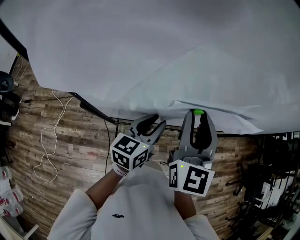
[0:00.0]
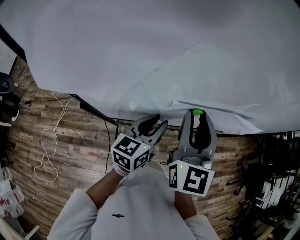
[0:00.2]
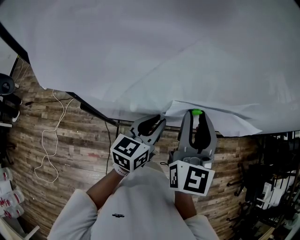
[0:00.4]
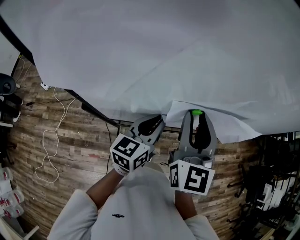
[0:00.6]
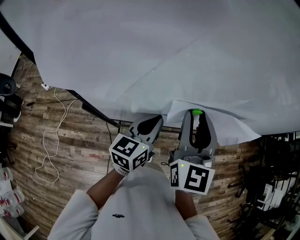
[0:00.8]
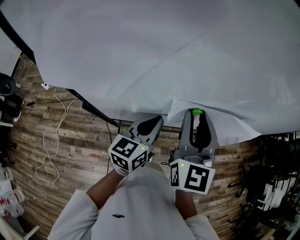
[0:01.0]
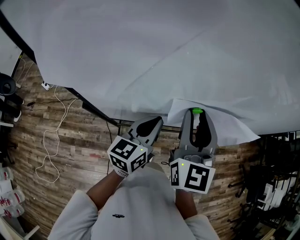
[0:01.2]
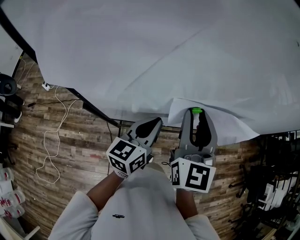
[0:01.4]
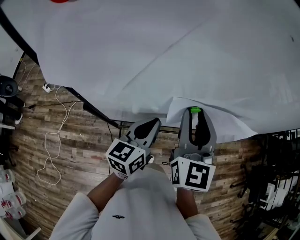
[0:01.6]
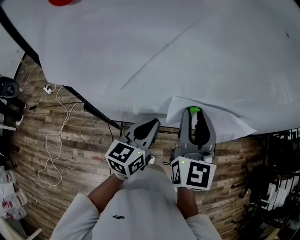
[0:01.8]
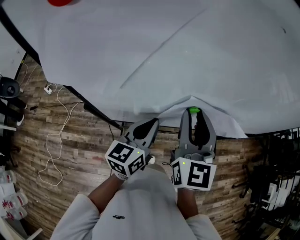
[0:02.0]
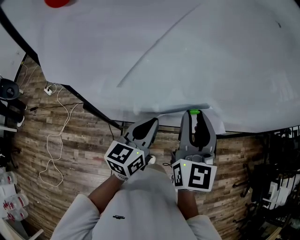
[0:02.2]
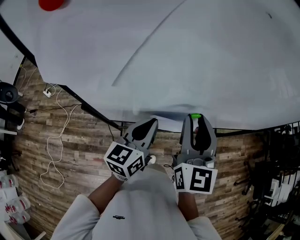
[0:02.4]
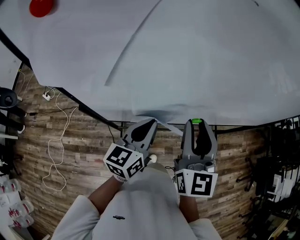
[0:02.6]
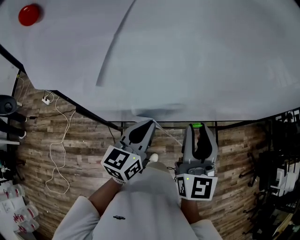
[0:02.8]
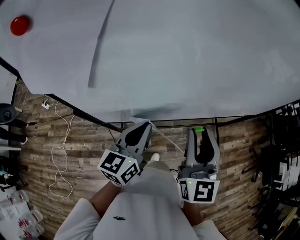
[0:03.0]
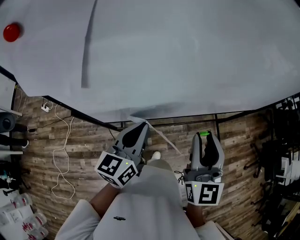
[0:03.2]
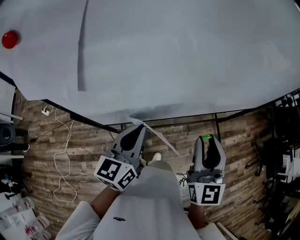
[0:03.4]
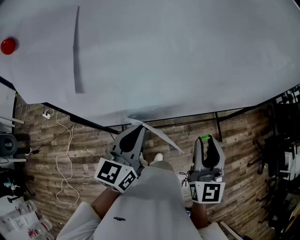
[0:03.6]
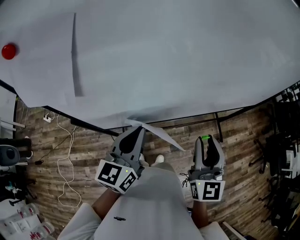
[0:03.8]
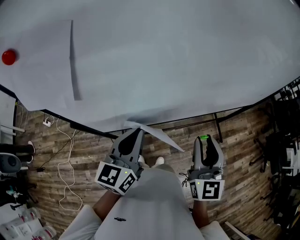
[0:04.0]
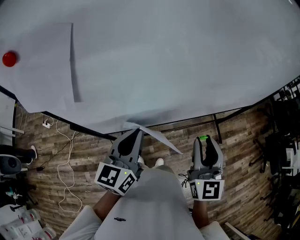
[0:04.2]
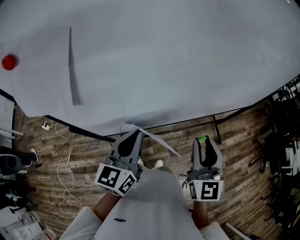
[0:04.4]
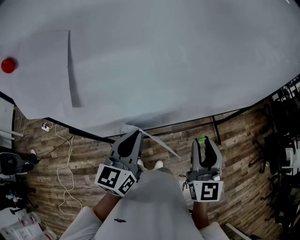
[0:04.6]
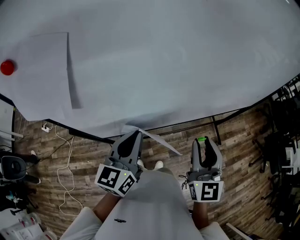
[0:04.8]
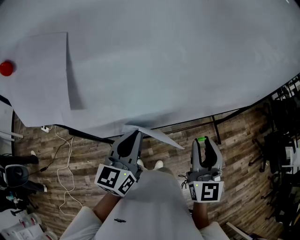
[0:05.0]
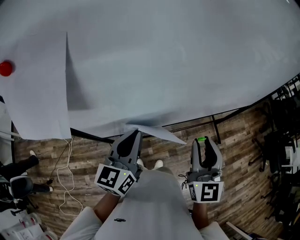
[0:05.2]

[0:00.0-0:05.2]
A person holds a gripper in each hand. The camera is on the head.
0:00.0 to 0:01.8: The left gripper closes its fingers.
0:01.8 to 0:03.4: The left gripper changes place by some 5 cm. Meanwhile the right gripper moves to the right and backward, about 15 cm.
0:03.4 to 0:05.2: The grippers stay close to where they were, moving slightly.

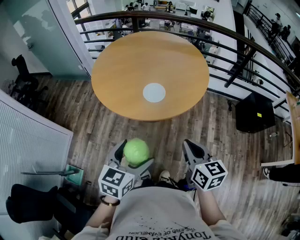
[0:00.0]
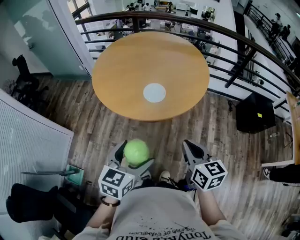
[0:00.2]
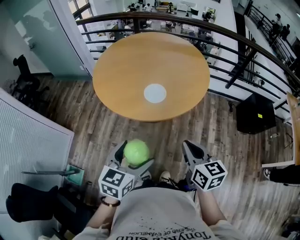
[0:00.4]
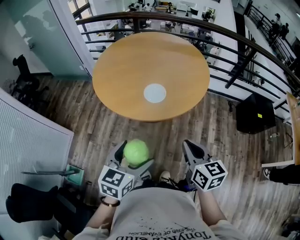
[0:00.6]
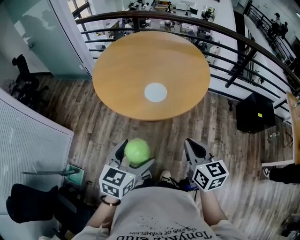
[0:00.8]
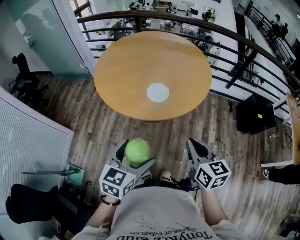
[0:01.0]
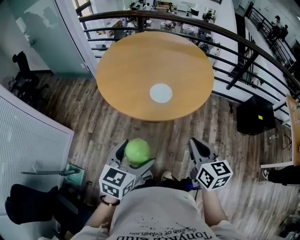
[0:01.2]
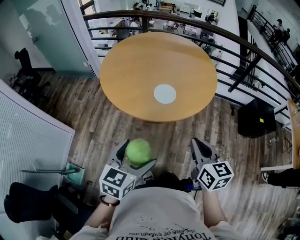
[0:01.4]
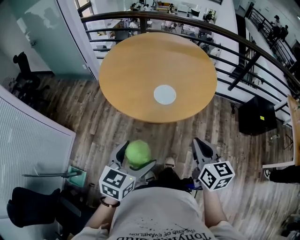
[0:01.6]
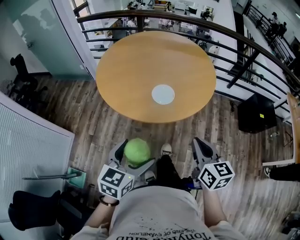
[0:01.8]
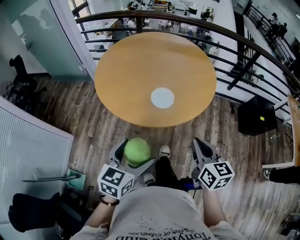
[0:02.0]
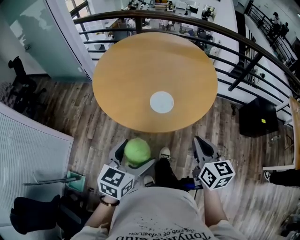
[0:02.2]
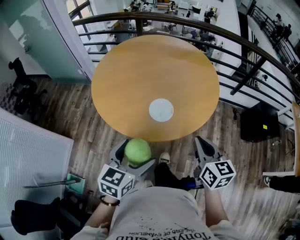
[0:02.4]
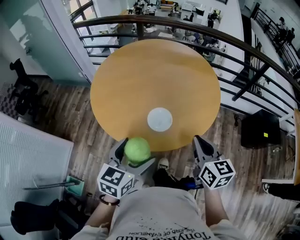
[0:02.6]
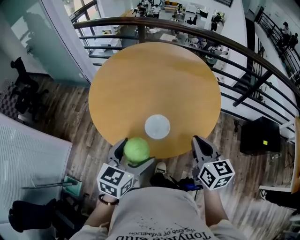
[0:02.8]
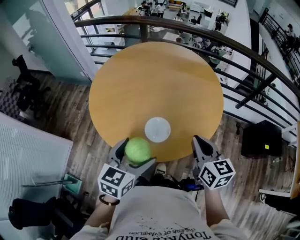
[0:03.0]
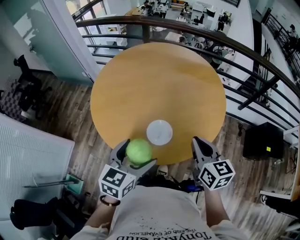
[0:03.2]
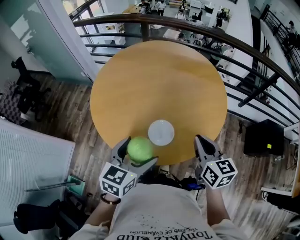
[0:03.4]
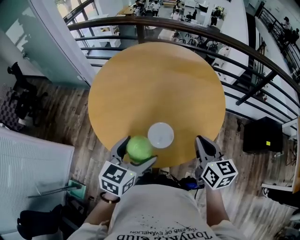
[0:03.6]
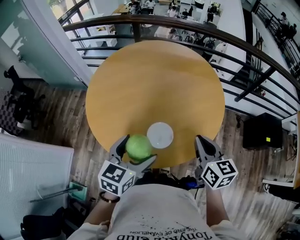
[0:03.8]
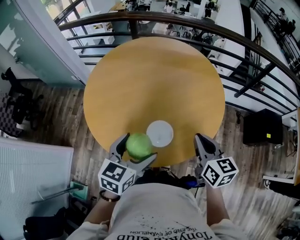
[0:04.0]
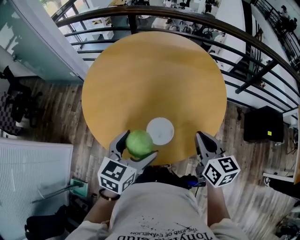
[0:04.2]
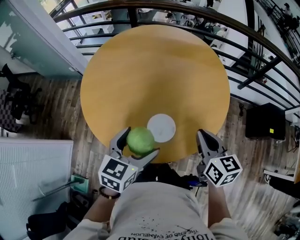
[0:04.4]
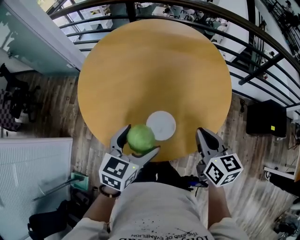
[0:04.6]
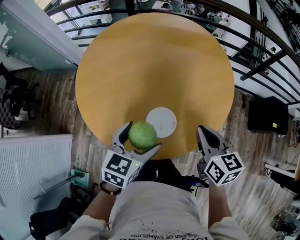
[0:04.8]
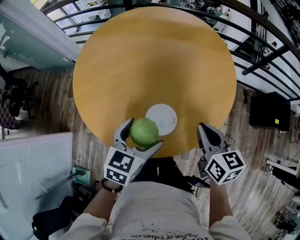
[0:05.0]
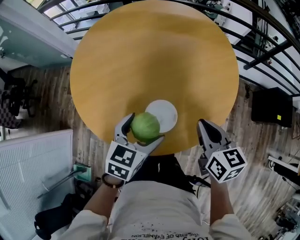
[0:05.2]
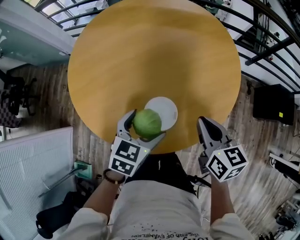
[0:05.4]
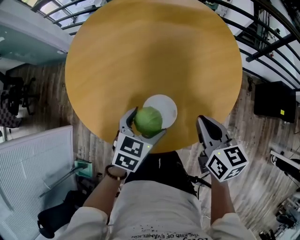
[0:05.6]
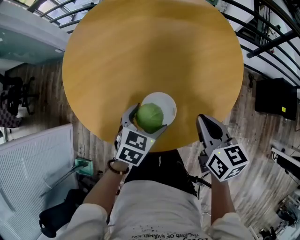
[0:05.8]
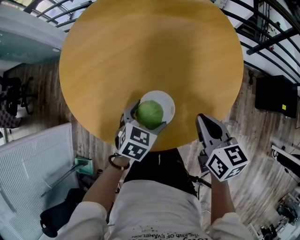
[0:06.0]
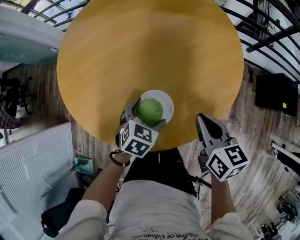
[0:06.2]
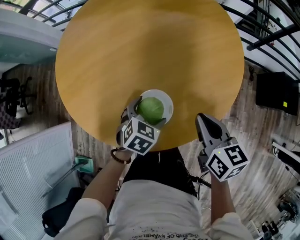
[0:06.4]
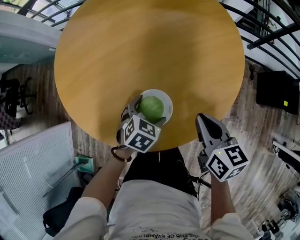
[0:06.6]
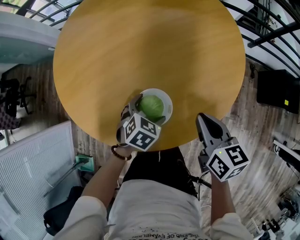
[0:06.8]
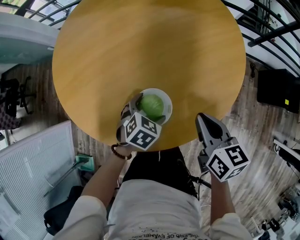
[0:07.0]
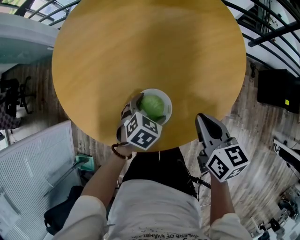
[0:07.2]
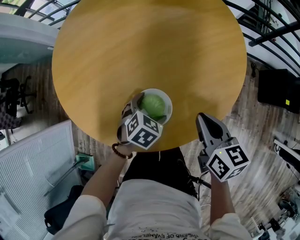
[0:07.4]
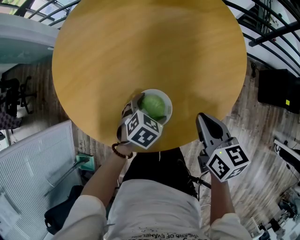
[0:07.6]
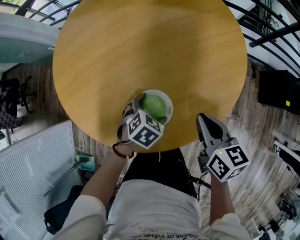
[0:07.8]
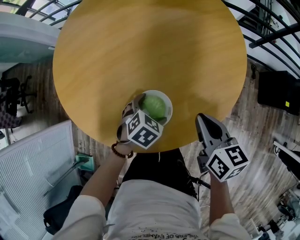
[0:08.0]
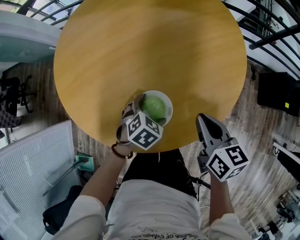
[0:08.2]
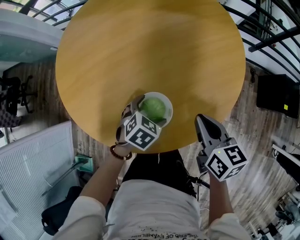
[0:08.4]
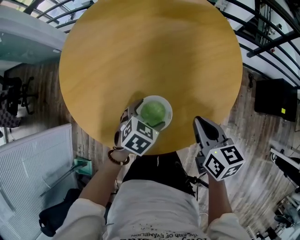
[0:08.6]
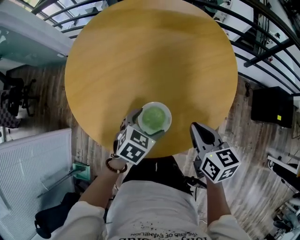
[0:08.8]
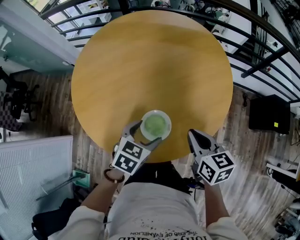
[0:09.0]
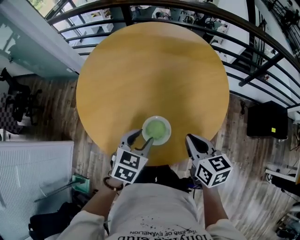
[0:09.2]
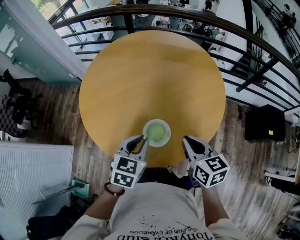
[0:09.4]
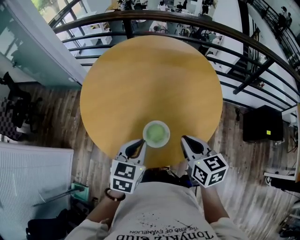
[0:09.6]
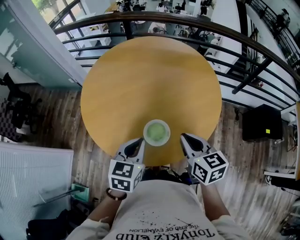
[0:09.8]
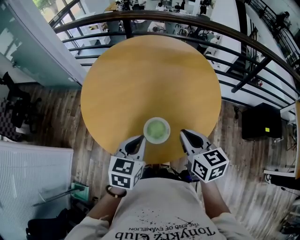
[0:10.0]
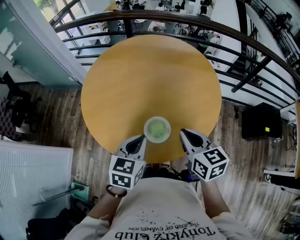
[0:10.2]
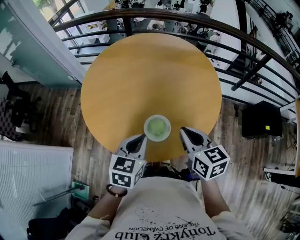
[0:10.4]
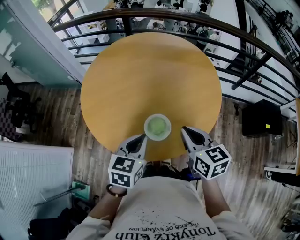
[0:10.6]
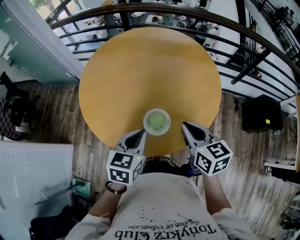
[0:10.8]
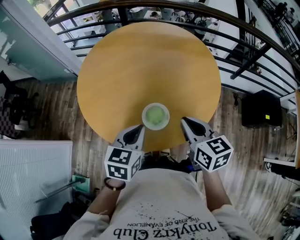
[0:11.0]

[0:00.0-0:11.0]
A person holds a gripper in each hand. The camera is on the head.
0:00.0 to 0:01.6: The left gripper heads to the left, covering some 5 cm.
0:01.6 to 0:03.2: The two grippers go approximately 30 cm forward.
0:03.2 to 0:04.8: The right gripper travels downward and forward by roughly 10 cm, while the left gripper travels forward and downward by some 10 cm.
0:04.8 to 0:06.2: The left gripper heads downward, covering some 20 cm, and turns by some 20 degrees. Meanwhile the right gripper shifts approximately 10 cm downward.
0:06.2 to 0:07.8: The left gripper travels downward by roughly 5 cm.
0:07.8 to 0:09.4: The left gripper travels upward by roughly 25 cm, changes its angle by some 40 degrees, and closes. The right gripper heads upward, backward and to the left, covering some 15 cm.
0:09.4 to 0:11.0: The left gripper shifts by approximately 5 cm.

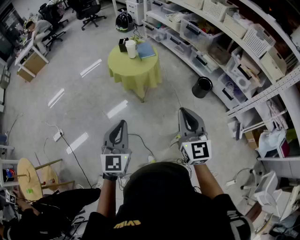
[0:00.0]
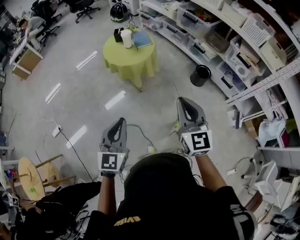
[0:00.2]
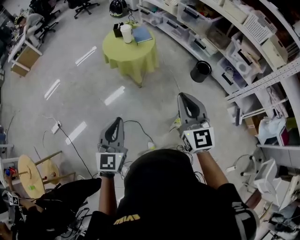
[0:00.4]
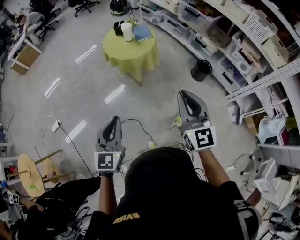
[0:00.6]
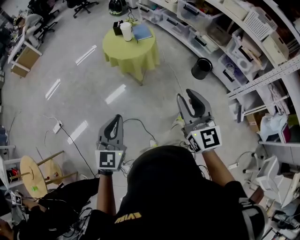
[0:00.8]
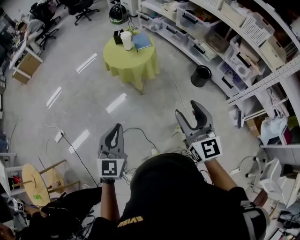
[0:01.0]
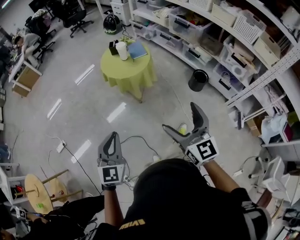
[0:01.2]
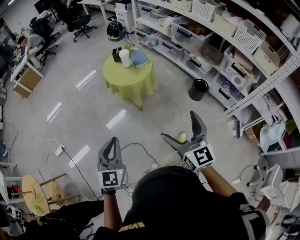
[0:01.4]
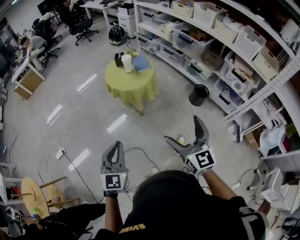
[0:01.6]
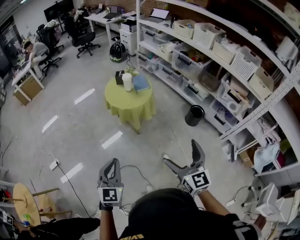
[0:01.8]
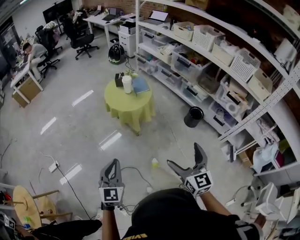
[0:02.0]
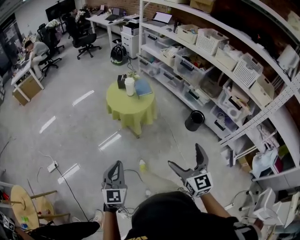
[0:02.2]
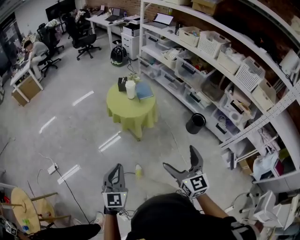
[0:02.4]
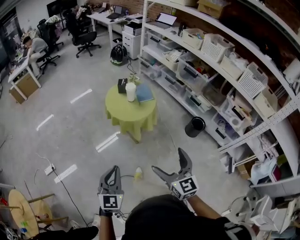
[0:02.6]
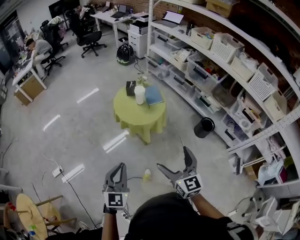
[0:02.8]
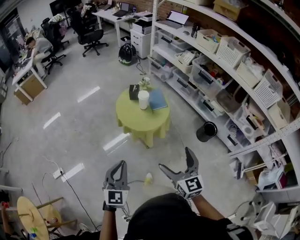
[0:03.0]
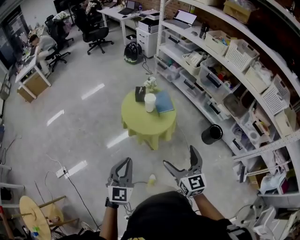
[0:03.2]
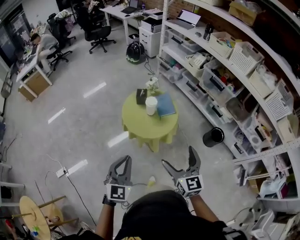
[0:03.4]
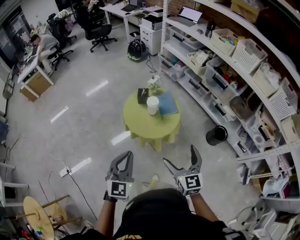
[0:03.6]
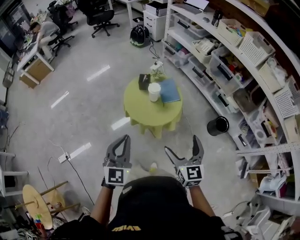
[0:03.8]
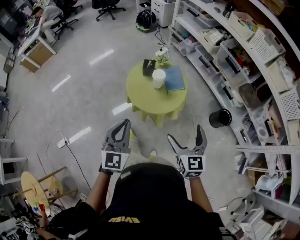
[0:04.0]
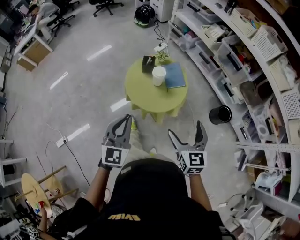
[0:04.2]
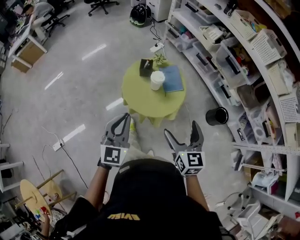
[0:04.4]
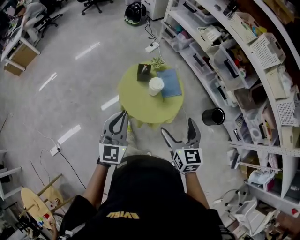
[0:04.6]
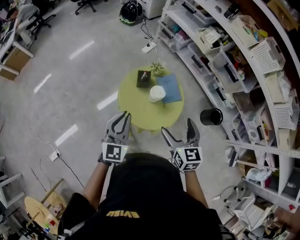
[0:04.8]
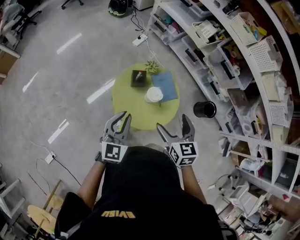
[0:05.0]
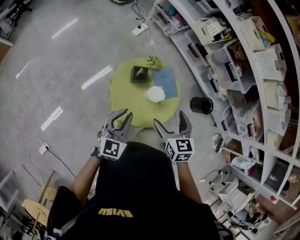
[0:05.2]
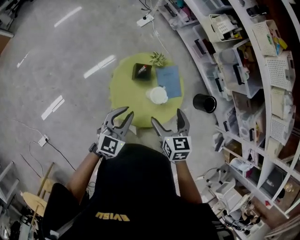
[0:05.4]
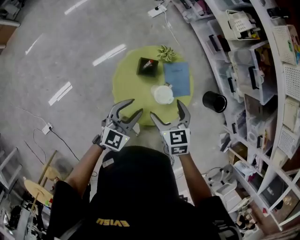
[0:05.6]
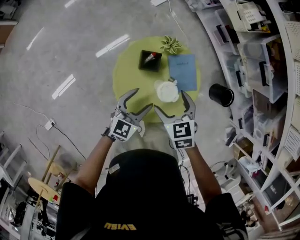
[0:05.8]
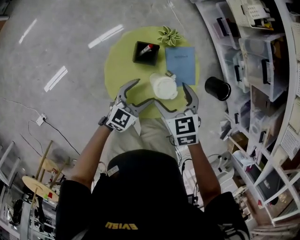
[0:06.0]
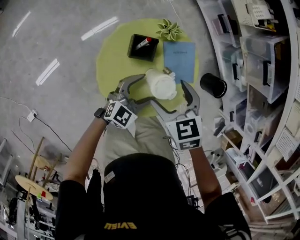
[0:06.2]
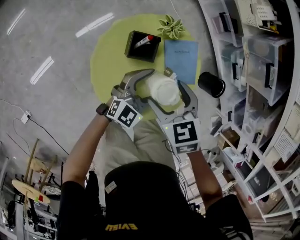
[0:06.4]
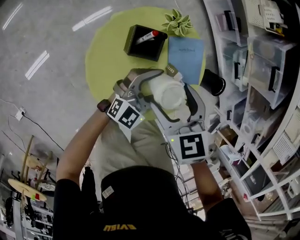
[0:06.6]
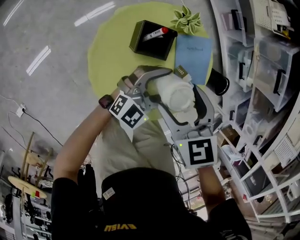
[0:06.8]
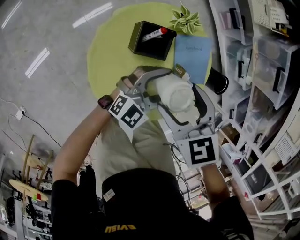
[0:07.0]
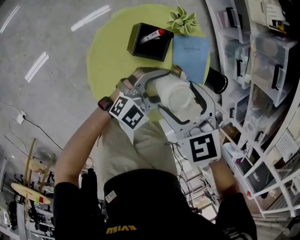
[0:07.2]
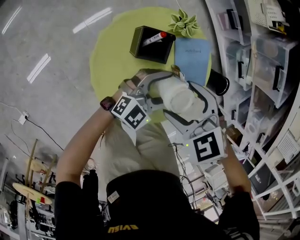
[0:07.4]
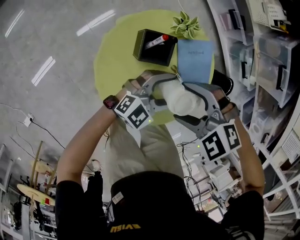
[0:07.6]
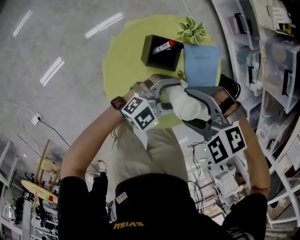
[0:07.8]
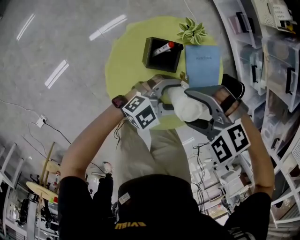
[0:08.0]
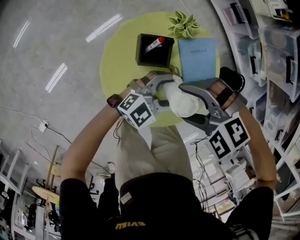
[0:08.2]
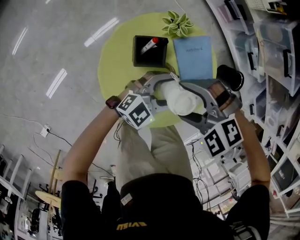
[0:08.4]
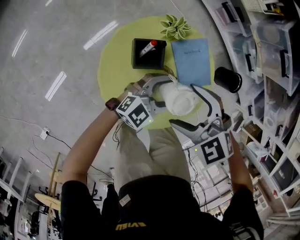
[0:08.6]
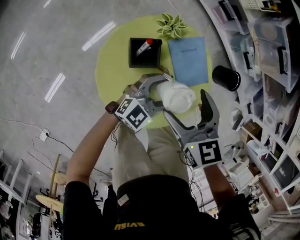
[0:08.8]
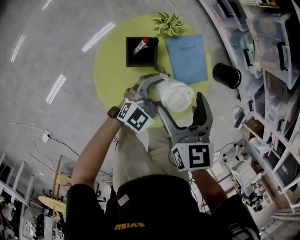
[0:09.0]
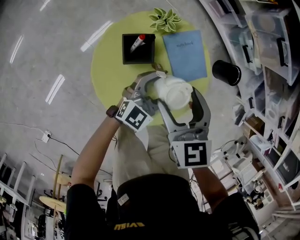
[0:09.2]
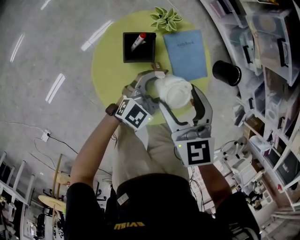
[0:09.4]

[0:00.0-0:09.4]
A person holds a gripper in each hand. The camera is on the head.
0:00.0 to 0:01.6: The right gripper opens.
0:01.6 to 0:03.2: The left gripper shifts roughly 30 cm forward. The right gripper travels forward and to the left by about 30 cm.
0:03.2 to 0:04.8: Both grippers move forward, approximately 30 cm.
0:04.8 to 0:06.2: Both grippers move downward and forward, roughly 30 cm. The left gripper turns by about 30 degrees, and opens up. Meanwhile the right gripper changes its angle by about 40 degrees.
0:06.2 to 0:07.8: The left gripper moves roughly 5 cm, and rotates approximately 20 degrees. Meanwhile the right gripper rotates around the line of its fingers by approximately 60 degrees, counterclockwise from behind.
0:07.8 to 0:09.4: The right gripper rotates about 80 degrees.
